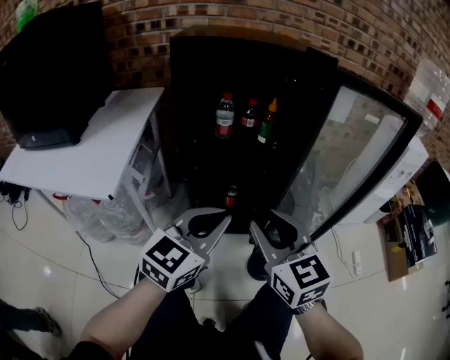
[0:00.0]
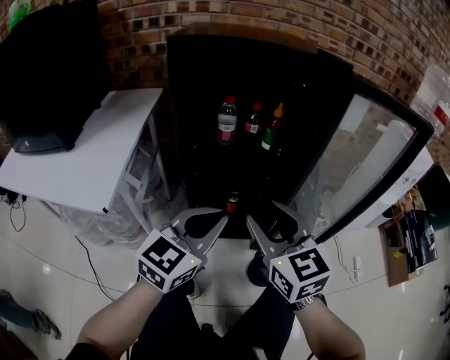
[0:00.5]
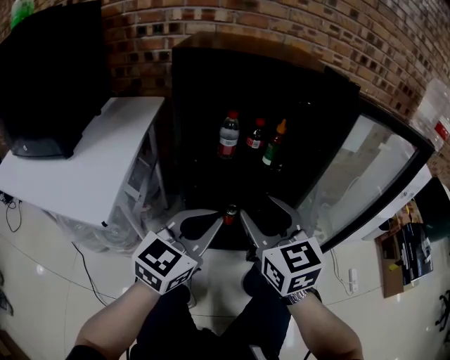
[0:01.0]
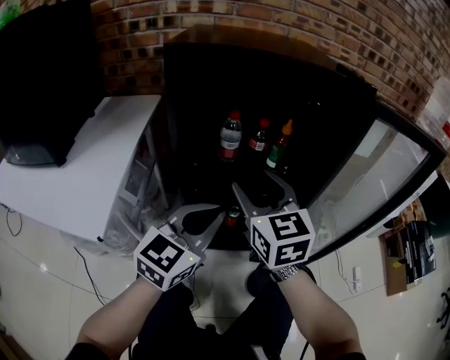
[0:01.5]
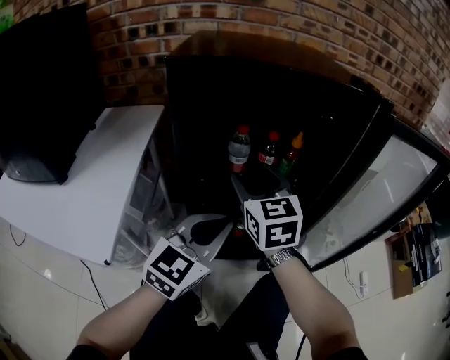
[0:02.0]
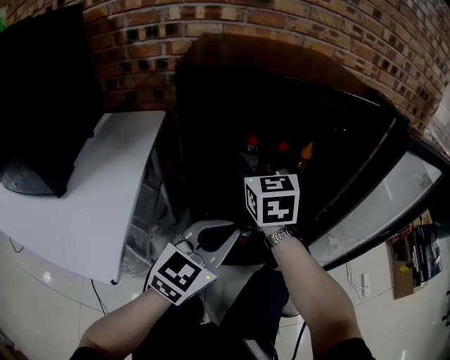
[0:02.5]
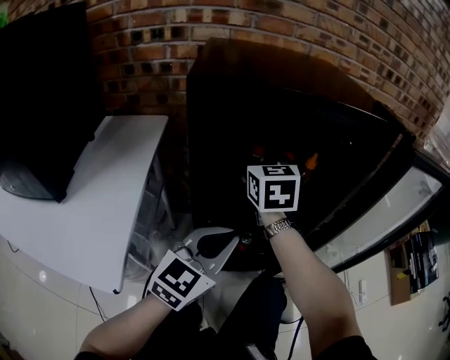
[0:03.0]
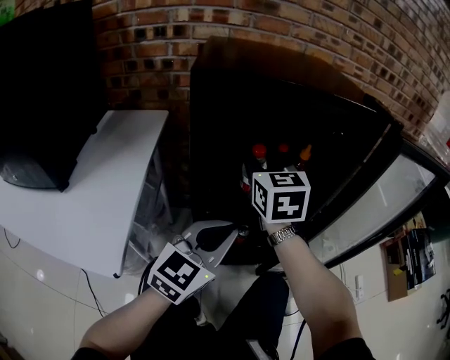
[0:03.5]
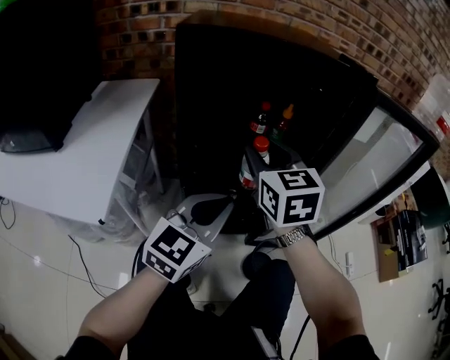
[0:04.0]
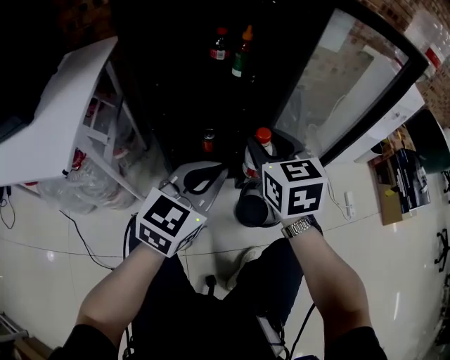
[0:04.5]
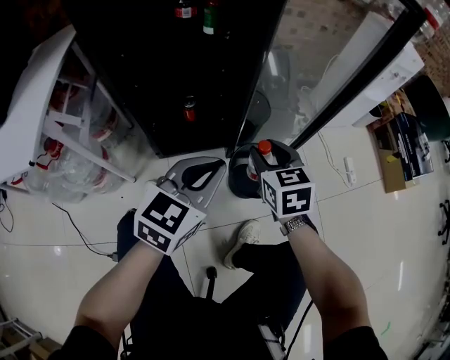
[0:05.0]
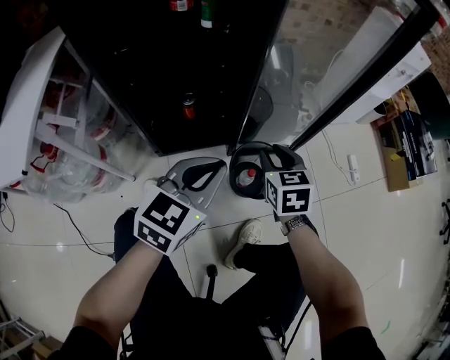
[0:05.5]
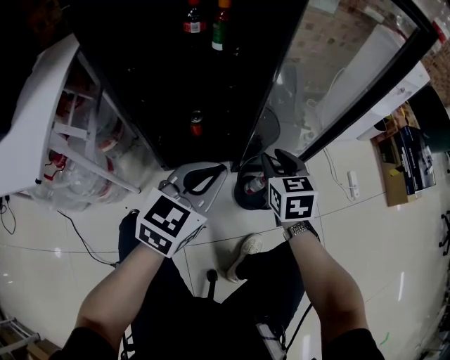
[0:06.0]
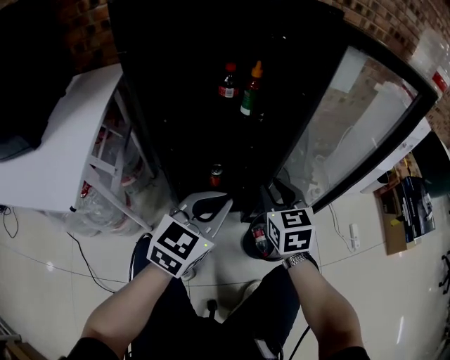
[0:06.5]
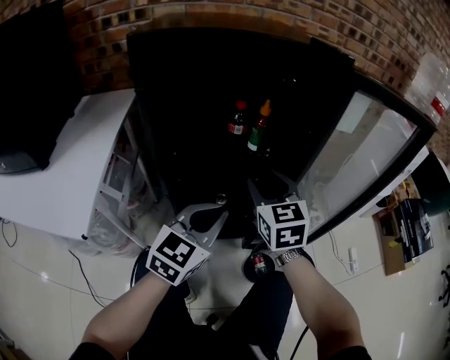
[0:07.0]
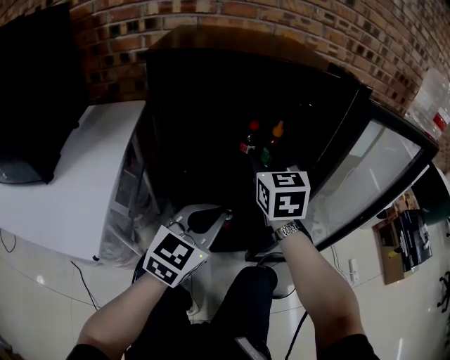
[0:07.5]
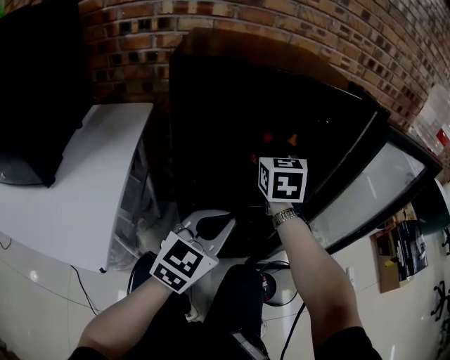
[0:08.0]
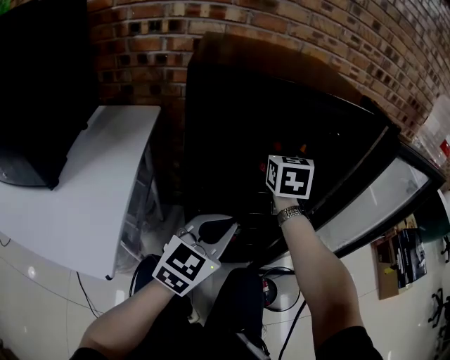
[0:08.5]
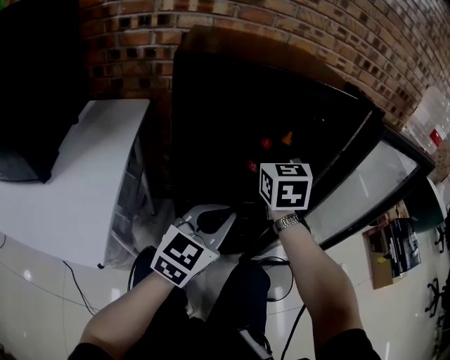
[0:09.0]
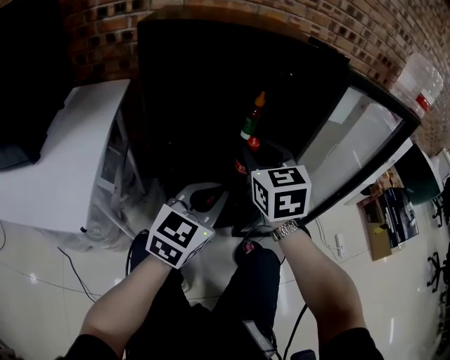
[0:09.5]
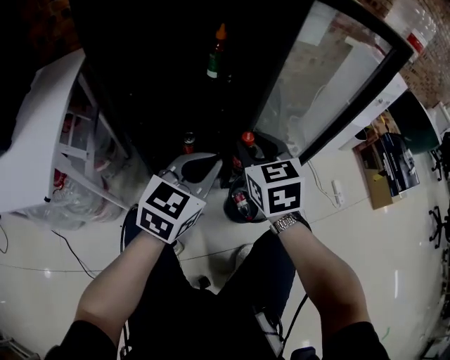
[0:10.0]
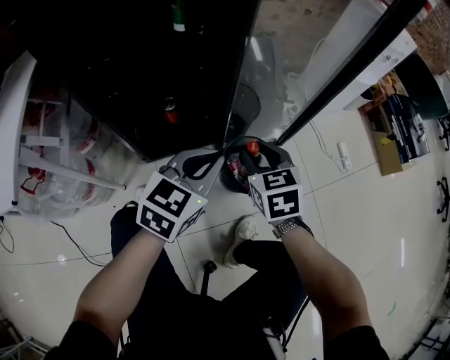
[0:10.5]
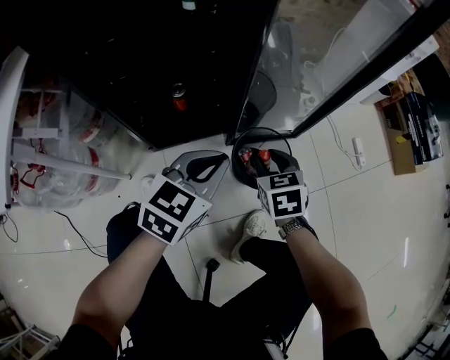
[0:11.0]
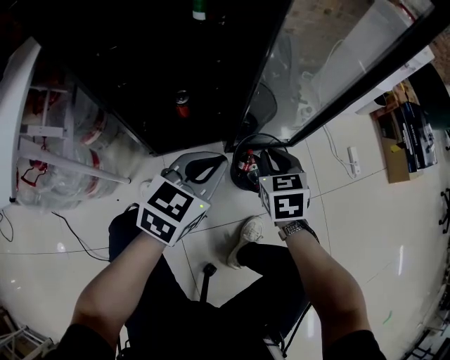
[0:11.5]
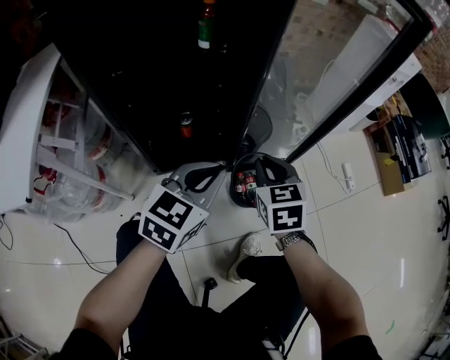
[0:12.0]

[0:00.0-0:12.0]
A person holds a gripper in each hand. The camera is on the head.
0:00.0 to 0:02.0: The right gripper heads forward and to the left, covering about 30 cm, and opens its fingers, while the left gripper moves forward and to the left, about 15 cm.
0:02.0 to 0:04.0: The left gripper ends up about 5 cm from where it was. The right gripper reaches roughly 10 cm forward, then returns.
0:04.0 to 0:06.0: The right gripper travels downward and to the right by roughly 35 cm, and swivels approximately 30 degrees. The left gripper goes roughly 20 cm to the right and downward.
0:06.0 to 0:08.0: The left gripper goes roughly 20 cm to the left, upward and forward, while the right gripper moves upward, to the left and forward, roughly 40 cm, and turns by about 20 degrees.
0:08.0 to 0:10.0: The left gripper heads to the right, downward and backward, covering some 15 cm, while the right gripper moves backward, to the right and downward, approximately 30 cm.
0:10.0 to 0:12.0: The left gripper heads downward, covering roughly 10 cm, while the right gripper shifts about 15 cm downward and to the right.

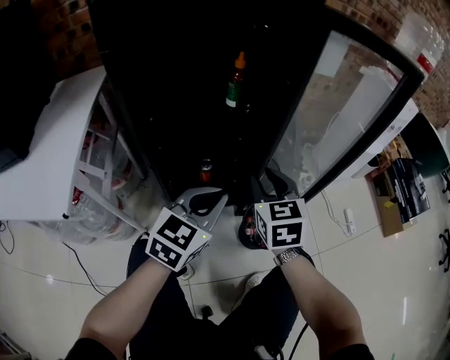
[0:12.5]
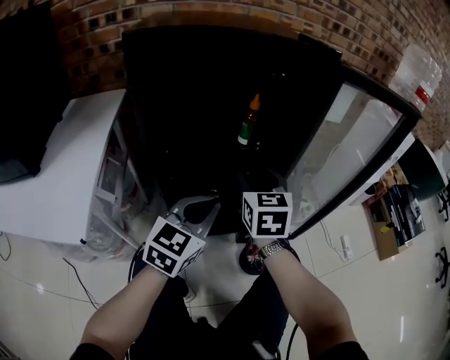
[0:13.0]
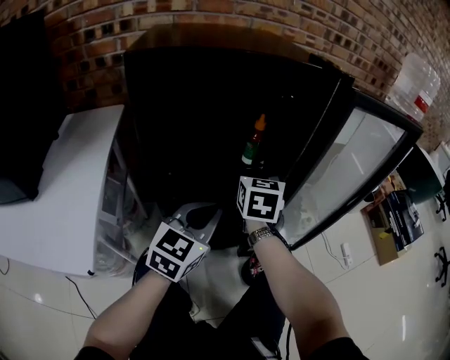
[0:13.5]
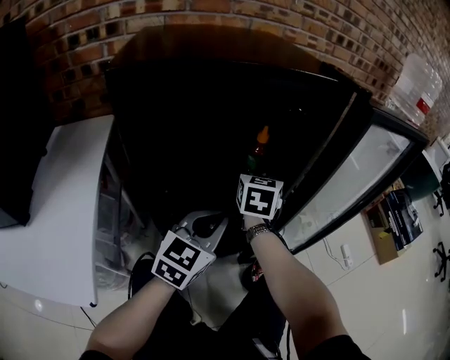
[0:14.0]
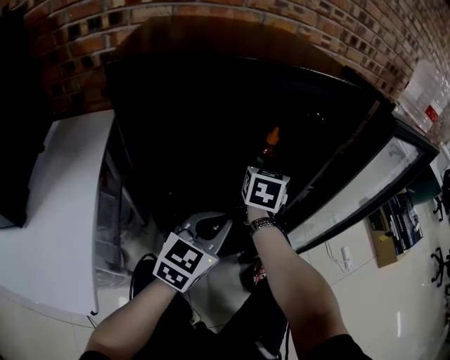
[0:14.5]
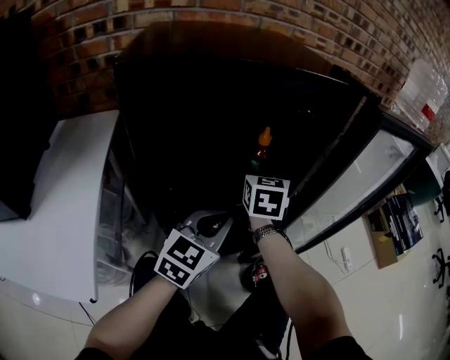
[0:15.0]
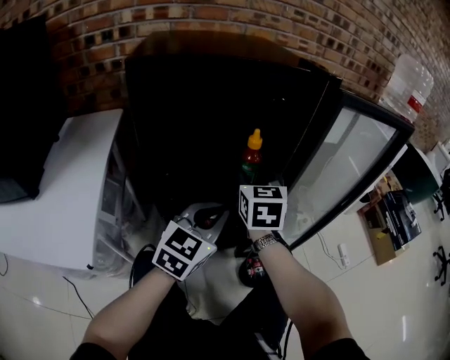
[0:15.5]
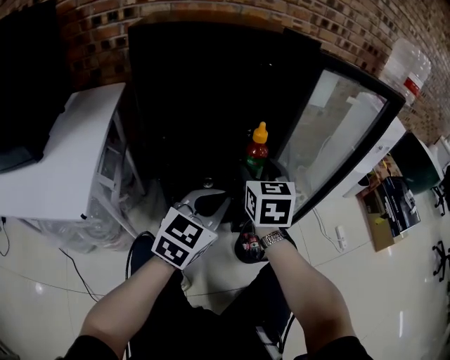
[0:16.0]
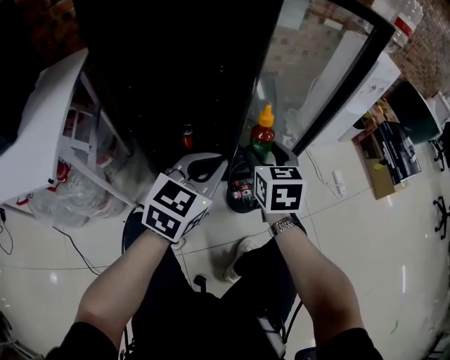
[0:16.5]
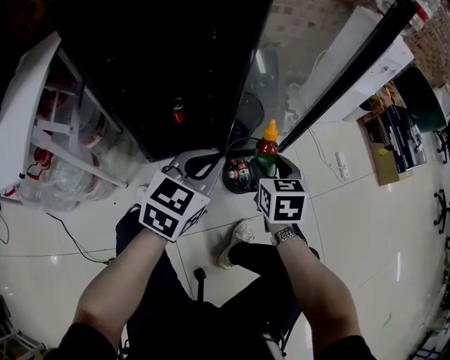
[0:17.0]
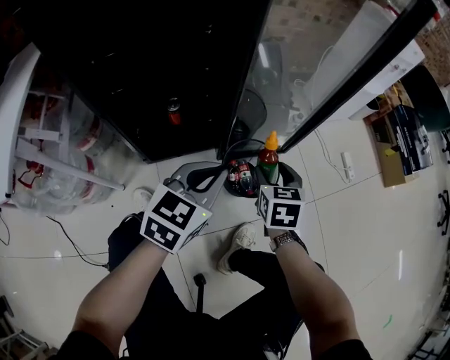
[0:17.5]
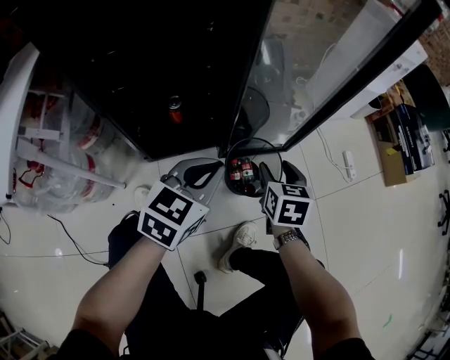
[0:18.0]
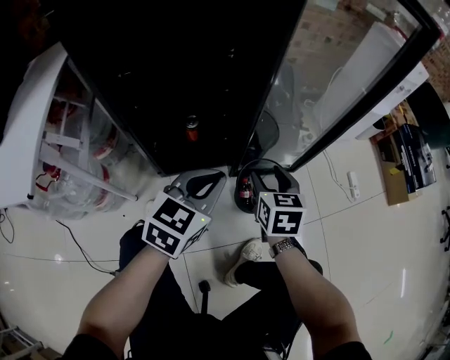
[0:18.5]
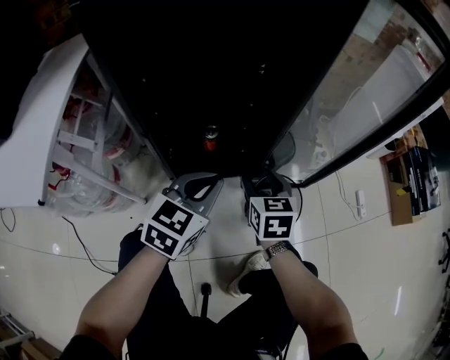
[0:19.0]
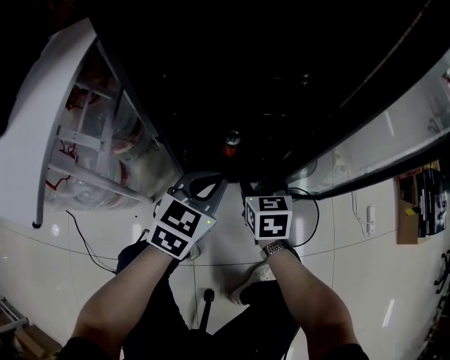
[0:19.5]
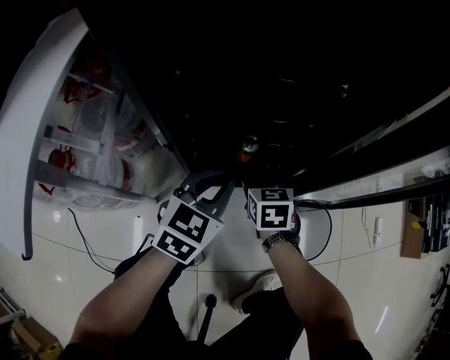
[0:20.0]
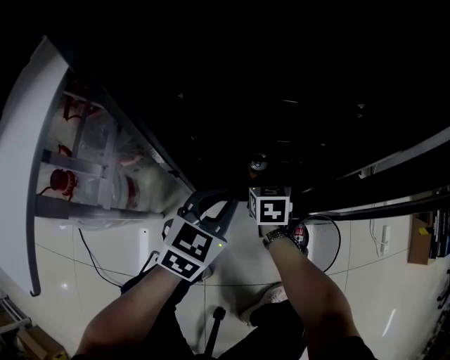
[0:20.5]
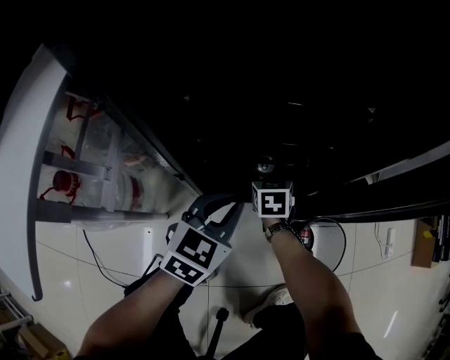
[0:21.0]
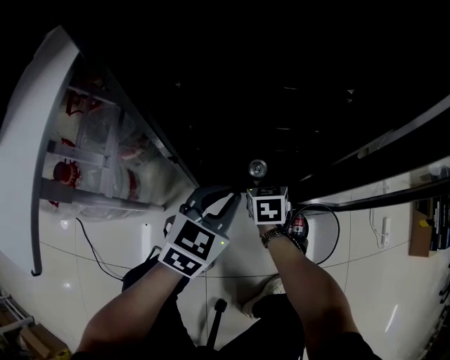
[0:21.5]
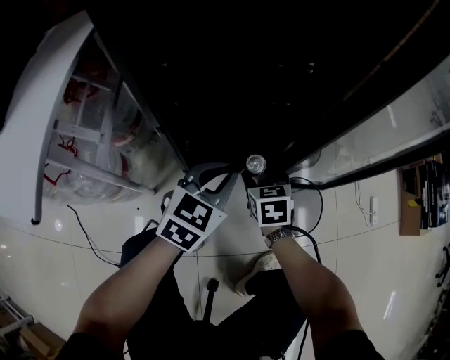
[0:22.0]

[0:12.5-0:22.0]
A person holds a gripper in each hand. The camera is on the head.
0:12.5 to 0:14.5: The left gripper heads to the left and forward, covering about 15 cm. Meanwhile the right gripper shifts about 25 cm forward and to the left, changes its angle by approximately 20 degrees, and opens.
0:14.5 to 0:16.5: The right gripper shifts about 35 cm backward and to the right. The left gripper moves to the right and backward, approximately 20 cm.
0:16.5 to 0:18.0: The left gripper moves downward, some 15 cm; the right gripper moves downward and to the right, some 20 cm.
0:18.0 to 0:20.0: The left gripper shifts about 20 cm to the left and forward. Meanwhile the right gripper heads to the left, covering about 30 cm, and swivels approximately 20 degrees.
0:20.0 to 0:22.0: The left gripper ends up about 5 cm from where it was. Meanwhile the right gripper shifts some 10 cm backward and to the right.

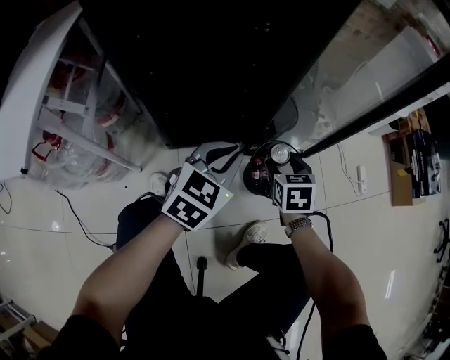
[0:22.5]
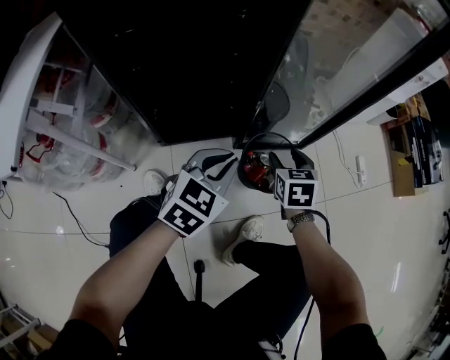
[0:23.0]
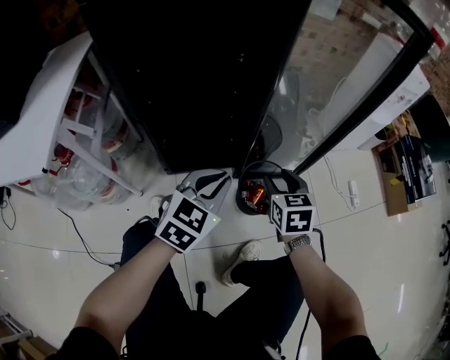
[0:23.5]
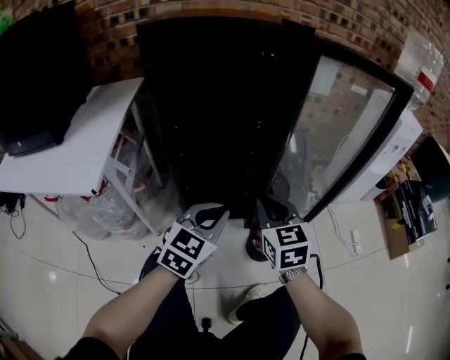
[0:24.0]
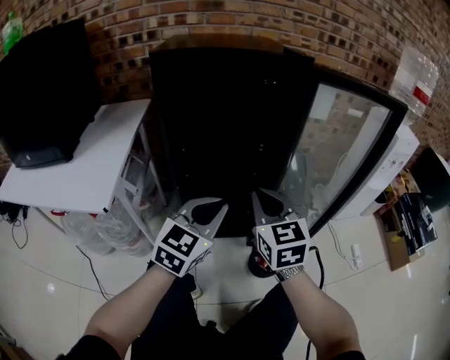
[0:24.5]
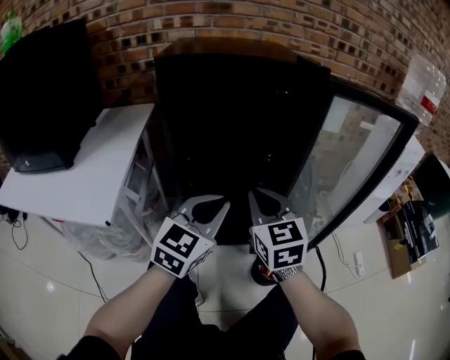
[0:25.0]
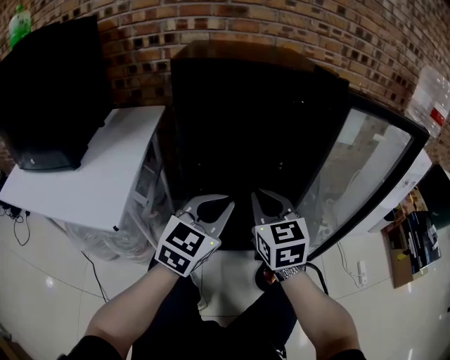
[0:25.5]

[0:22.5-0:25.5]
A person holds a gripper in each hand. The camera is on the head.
0:22.5 to 0:24.0: The right gripper goes roughly 25 cm upward, rotates about 30 degrees, and closes; the left gripper moves upward and backward, about 15 cm.
0:24.0 to 0:25.5: The left gripper goes roughly 15 cm upward, to the left and forward. The right gripper is displaced to the left, upward and forward by some 15 cm.

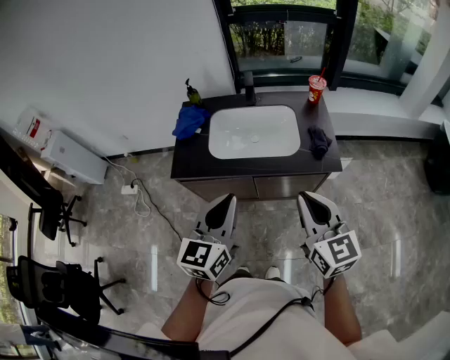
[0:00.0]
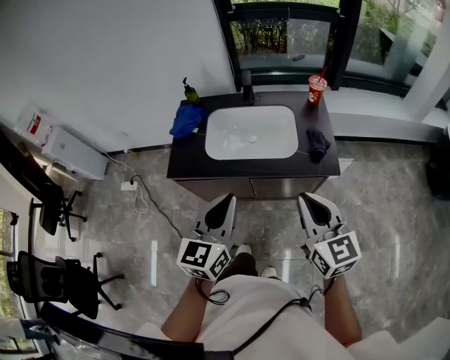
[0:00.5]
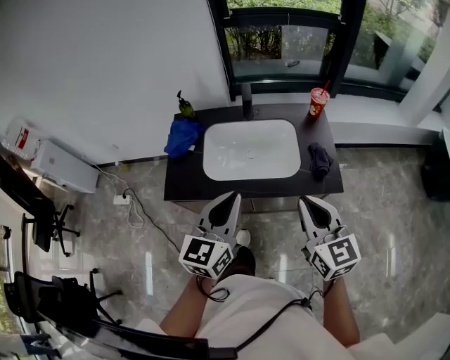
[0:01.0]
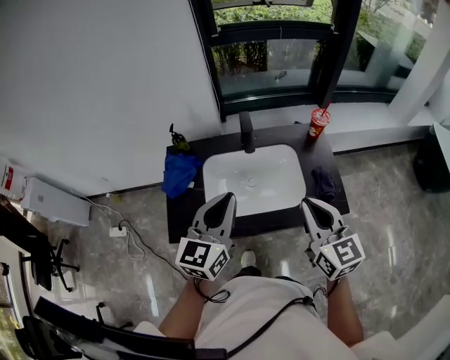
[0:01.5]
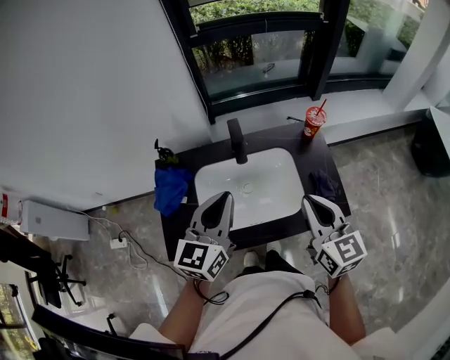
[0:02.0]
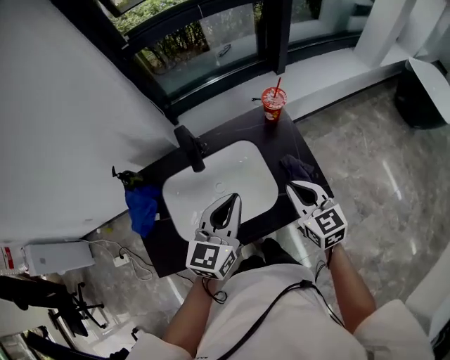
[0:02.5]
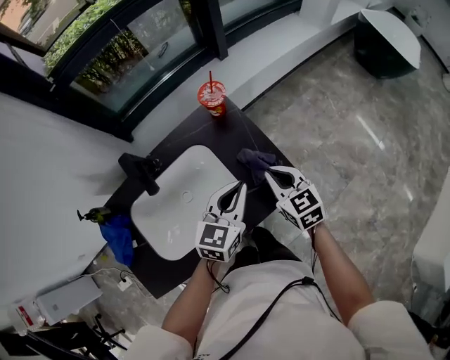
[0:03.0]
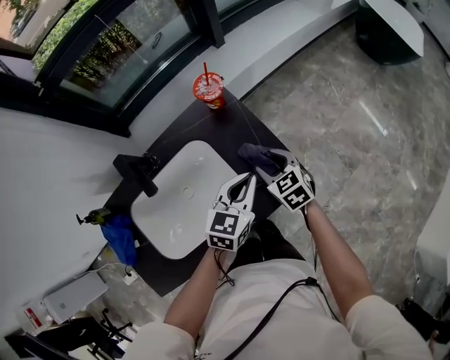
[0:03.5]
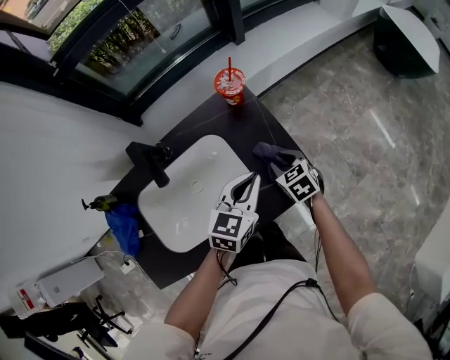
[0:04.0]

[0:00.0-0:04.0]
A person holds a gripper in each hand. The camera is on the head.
0:00.0 to 0:02.0: The grippers both shift forward by roughly 30 cm.
0:02.0 to 0:04.0: The right gripper shifts some 35 cm downward, to the right and forward, points its fingers roughly 40 degrees further downward, and opens up. Meanwhile the left gripper shifts about 35 cm to the right, downward and forward, and changes its angle by approximately 40 degrees.
